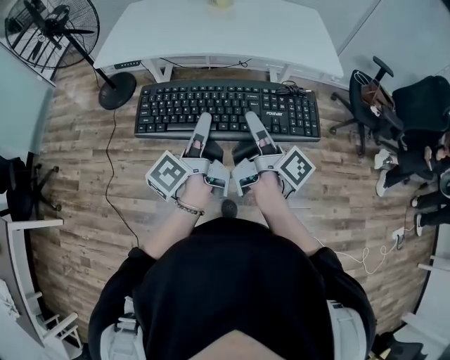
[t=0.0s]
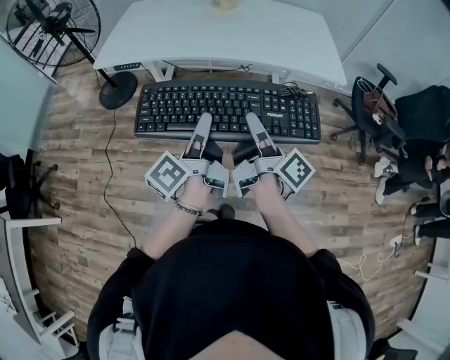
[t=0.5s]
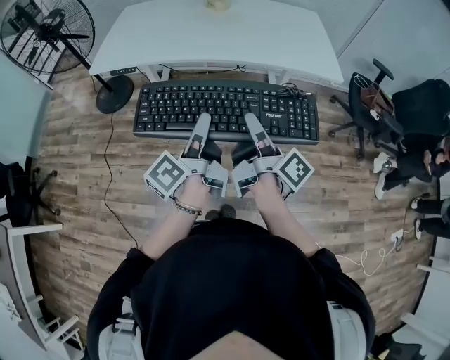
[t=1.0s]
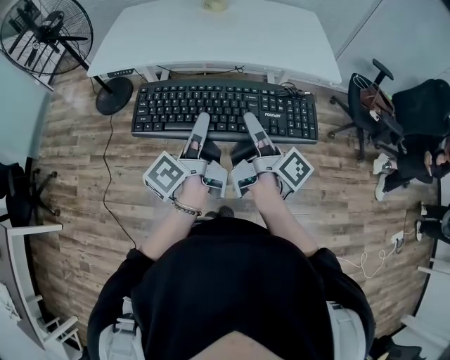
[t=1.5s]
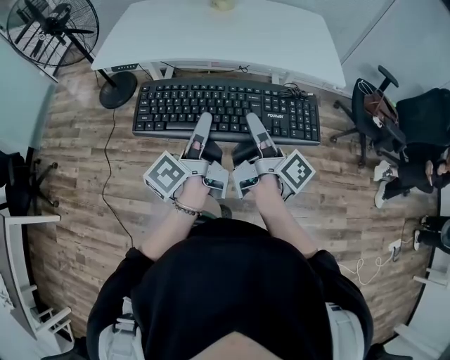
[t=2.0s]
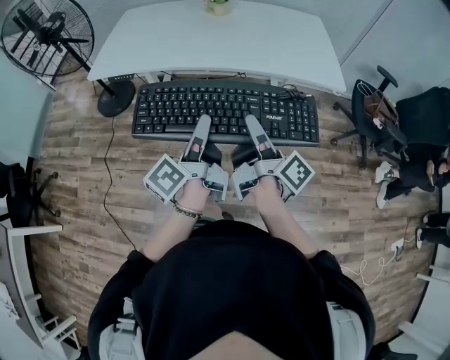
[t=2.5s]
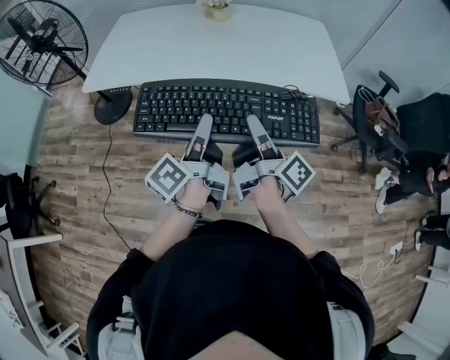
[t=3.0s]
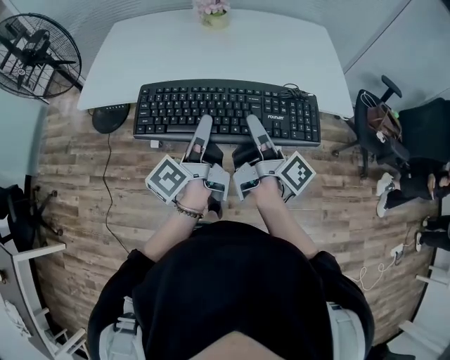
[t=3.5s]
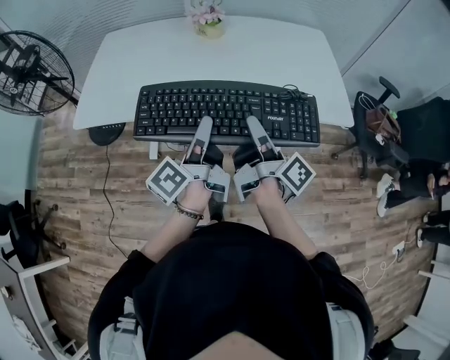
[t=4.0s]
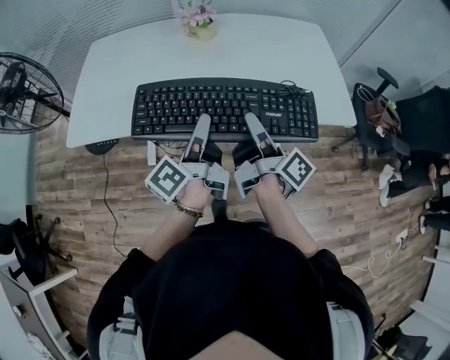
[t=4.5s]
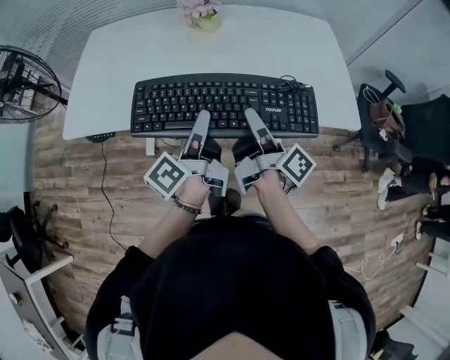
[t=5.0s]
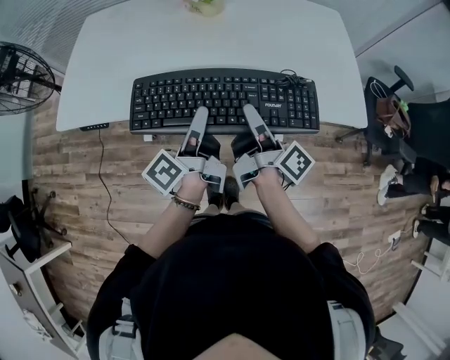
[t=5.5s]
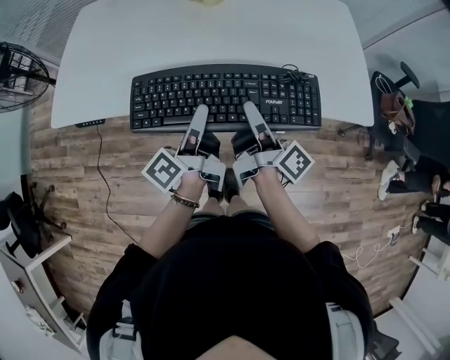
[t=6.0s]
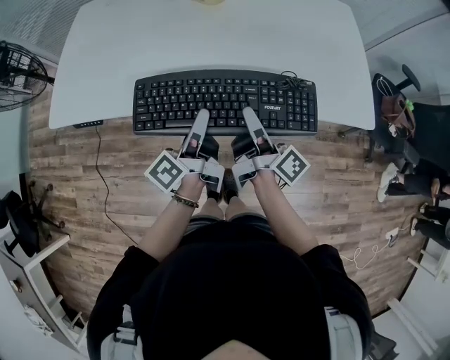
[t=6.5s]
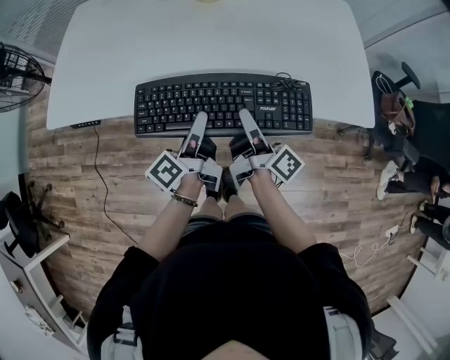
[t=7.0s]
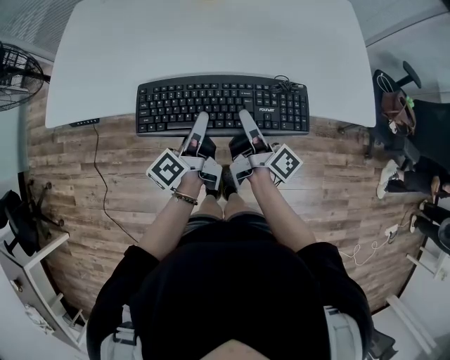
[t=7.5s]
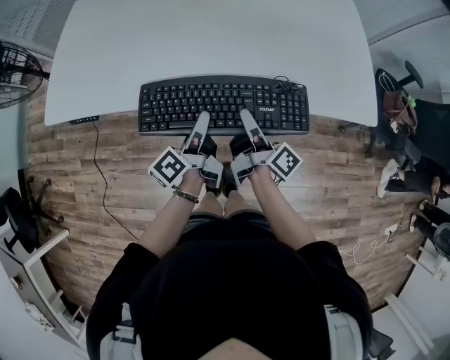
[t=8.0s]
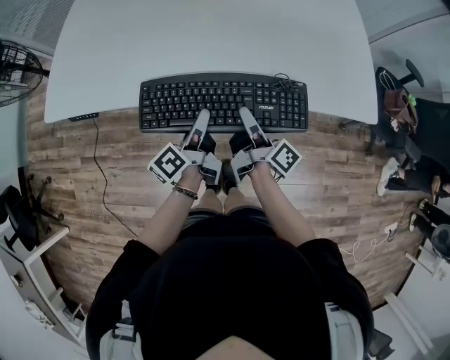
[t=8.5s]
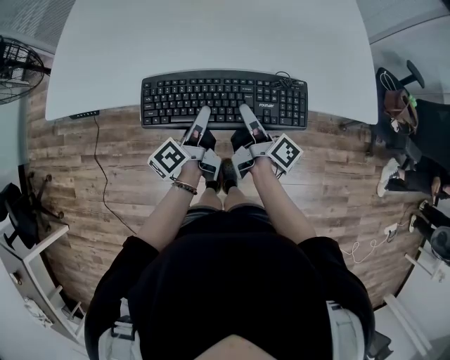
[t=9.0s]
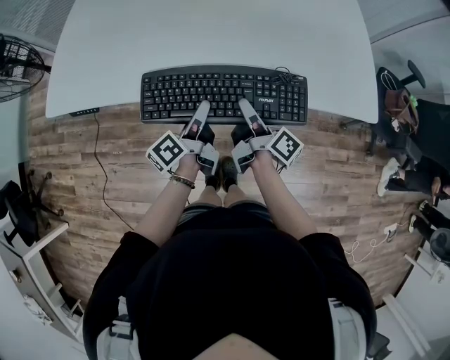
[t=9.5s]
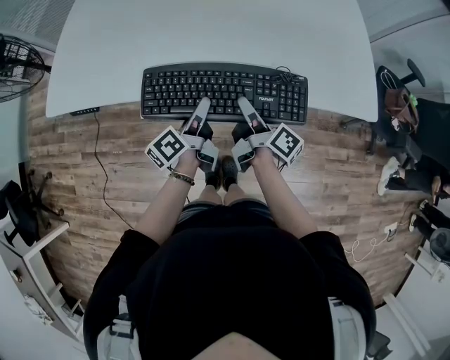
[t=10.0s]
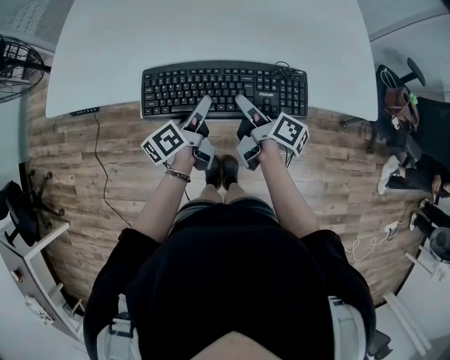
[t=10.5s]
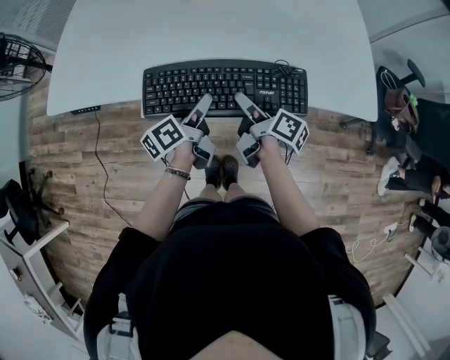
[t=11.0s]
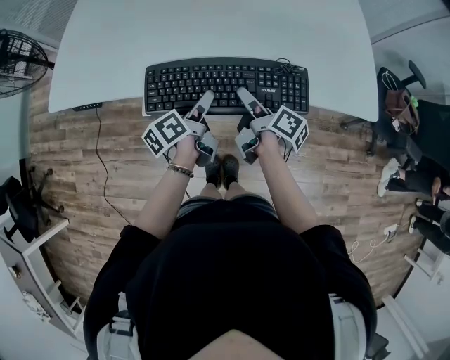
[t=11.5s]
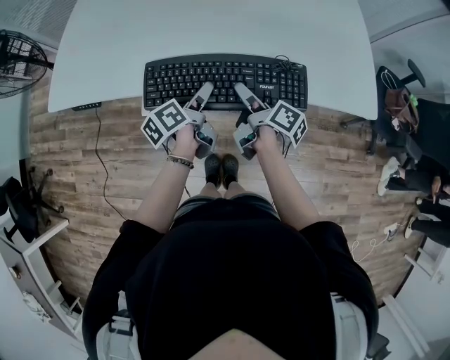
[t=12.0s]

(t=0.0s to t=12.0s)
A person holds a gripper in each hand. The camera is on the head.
t=0.0s - t=2.0s: The left gripper moves approximately 5 cm.
t=2.0s - t=4.0s: The left gripper ends up approximately 20 cm from where it was.
t=4.0s - t=6.0s: The left gripper goes about 10 cm downward.
t=6.0s - t=8.0s: The left gripper goes approximately 10 cm downward.
t=10.0s - t=12.0s: The left gripper opens.

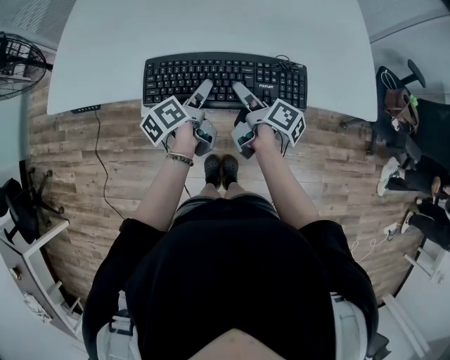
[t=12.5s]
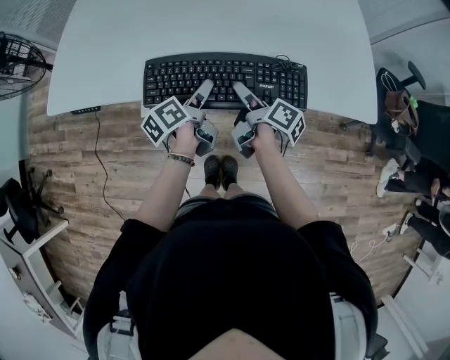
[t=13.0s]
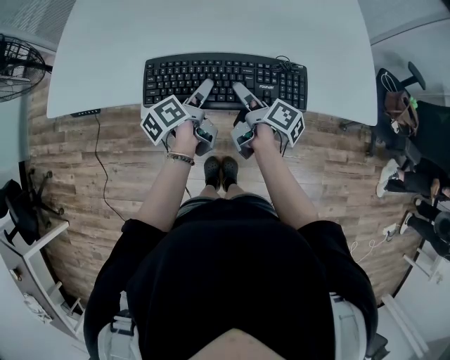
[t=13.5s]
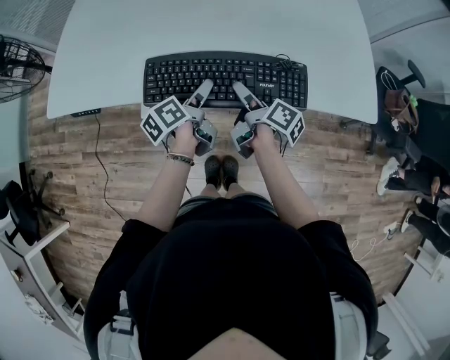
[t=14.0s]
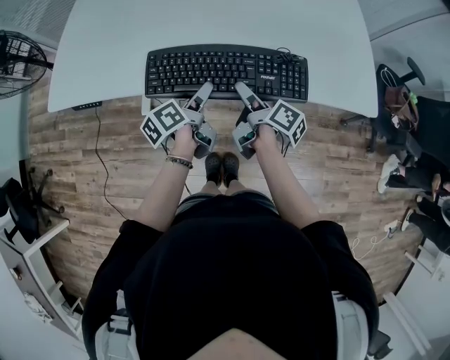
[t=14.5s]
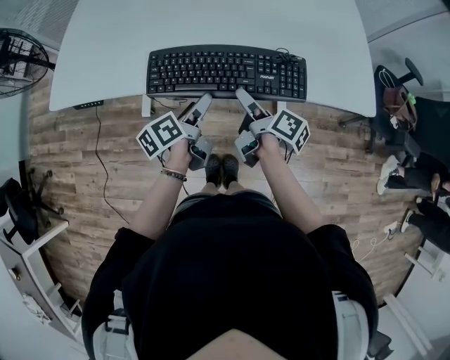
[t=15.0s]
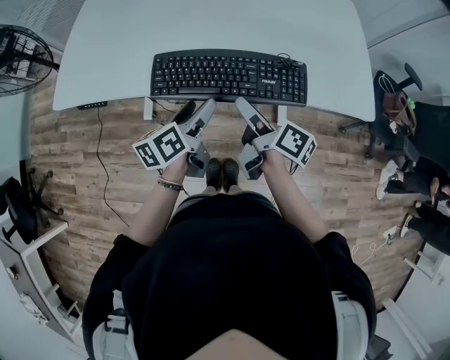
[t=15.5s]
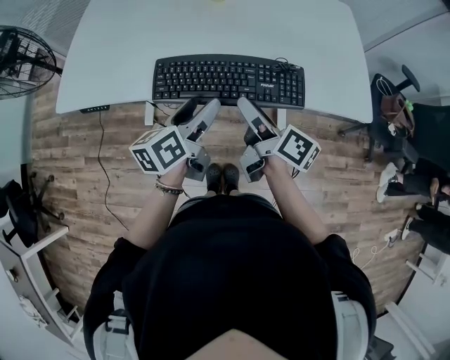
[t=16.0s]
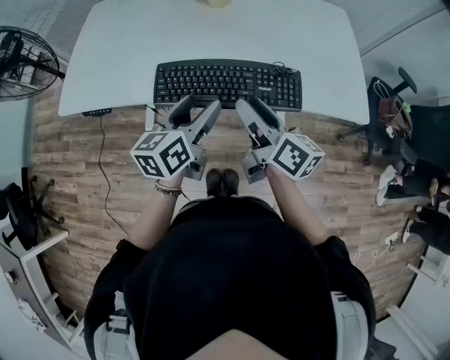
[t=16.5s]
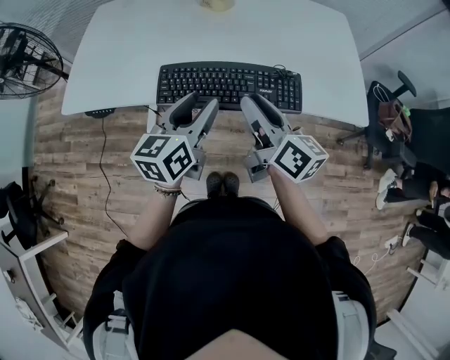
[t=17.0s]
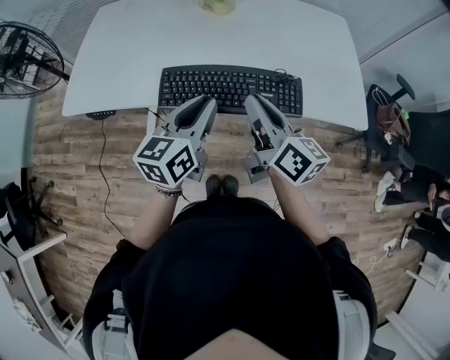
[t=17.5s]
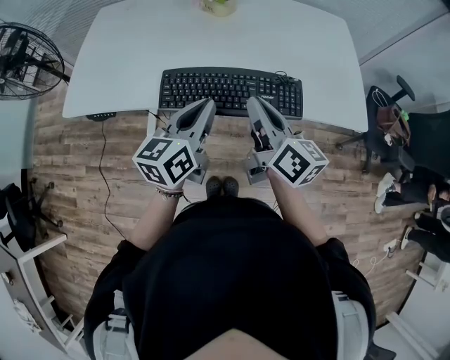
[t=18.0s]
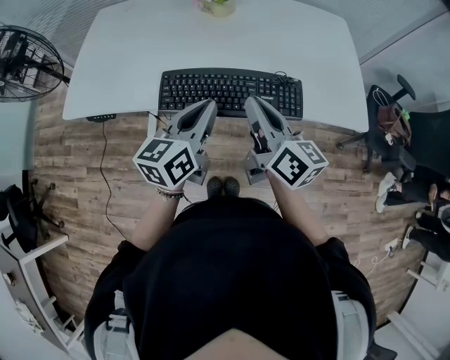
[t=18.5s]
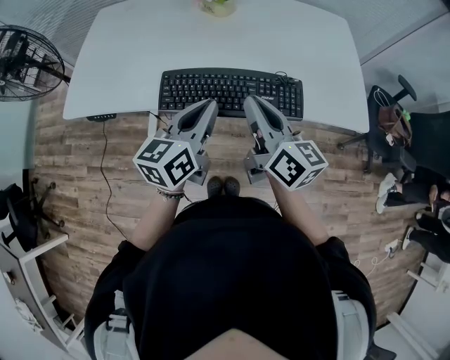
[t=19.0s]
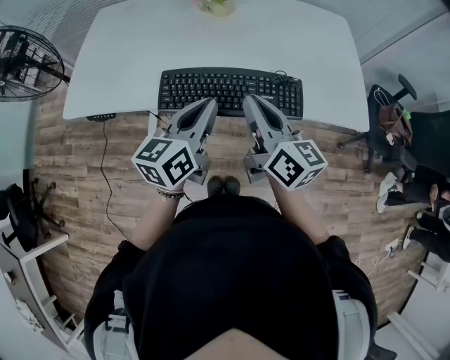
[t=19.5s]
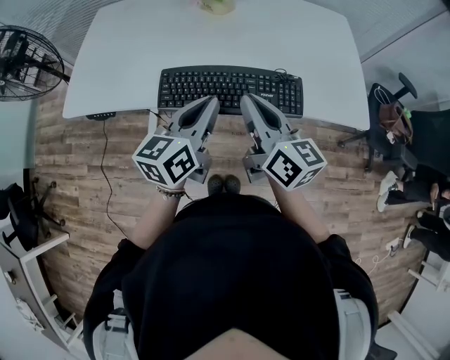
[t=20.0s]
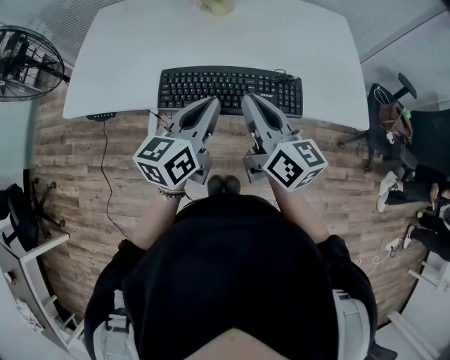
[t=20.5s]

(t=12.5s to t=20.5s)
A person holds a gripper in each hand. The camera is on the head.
t=14.5s - t=16.5s: The left gripper moves upward, roughly 15 cm, and rotates around the line of its fingers by roughly 40 degrees, clockwise from behind.
t=16.5s - t=18.5s: The left gripper closes its fingers.

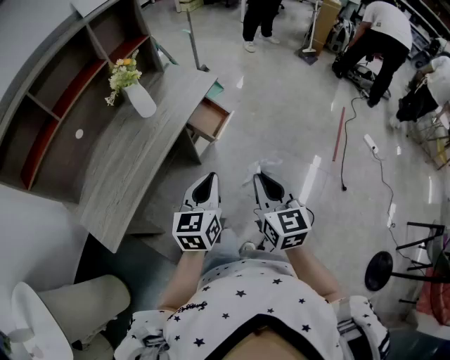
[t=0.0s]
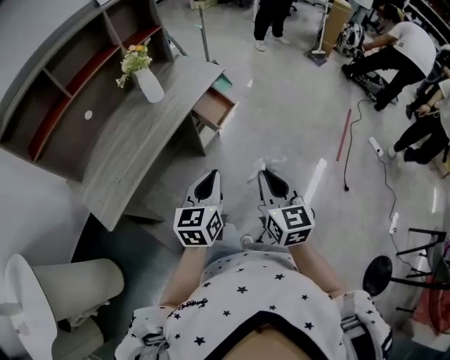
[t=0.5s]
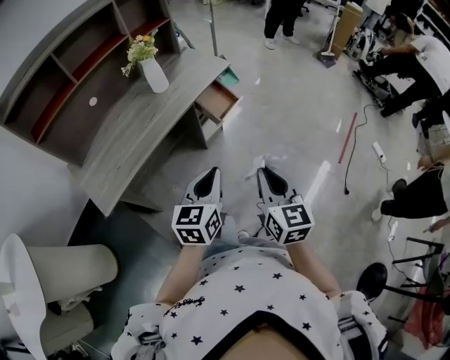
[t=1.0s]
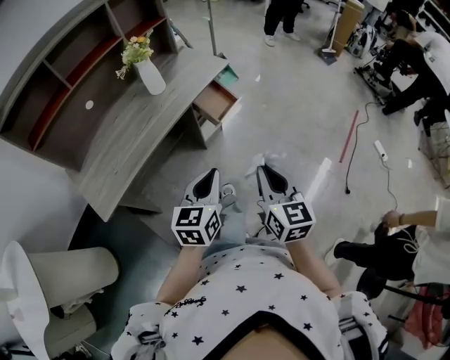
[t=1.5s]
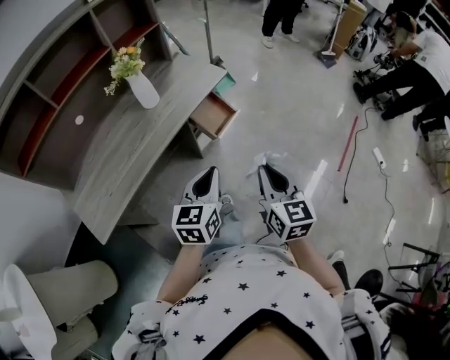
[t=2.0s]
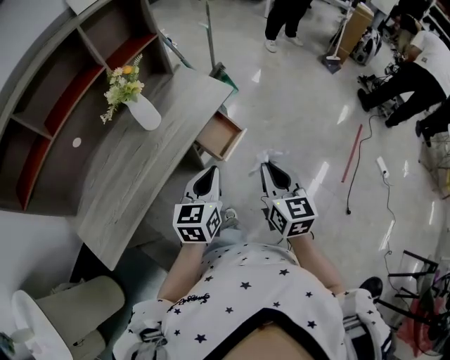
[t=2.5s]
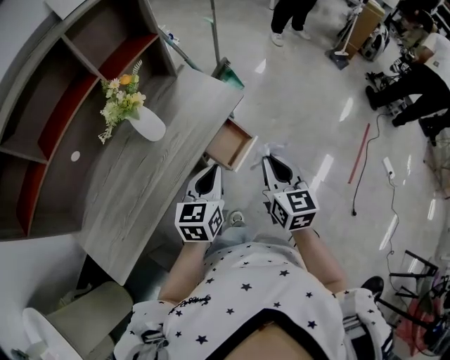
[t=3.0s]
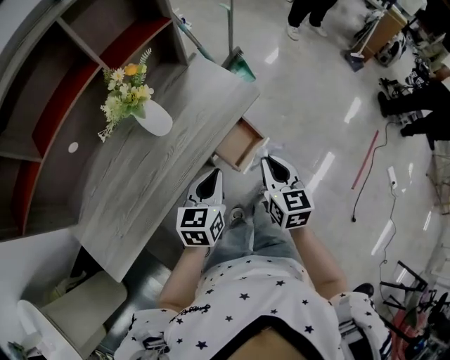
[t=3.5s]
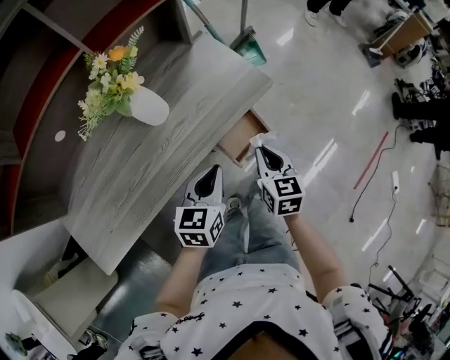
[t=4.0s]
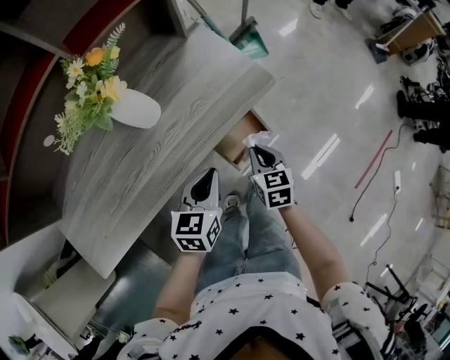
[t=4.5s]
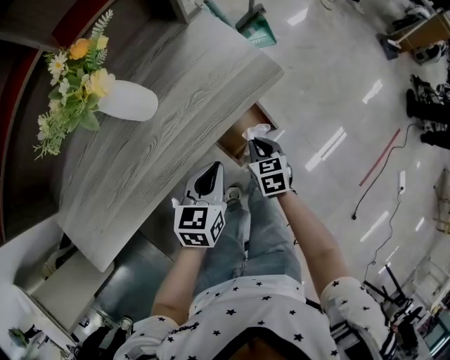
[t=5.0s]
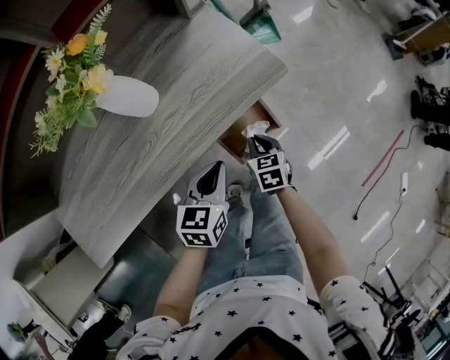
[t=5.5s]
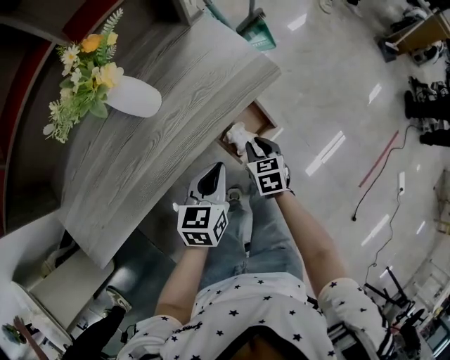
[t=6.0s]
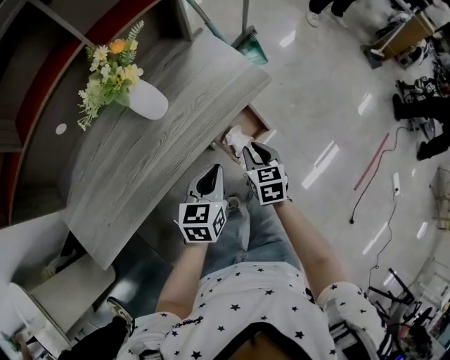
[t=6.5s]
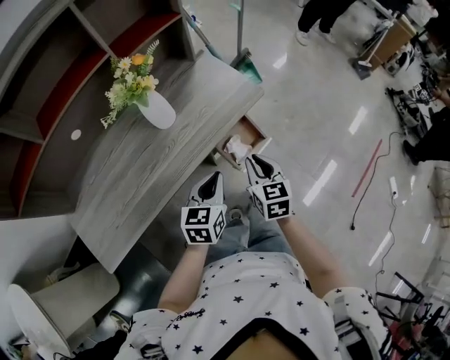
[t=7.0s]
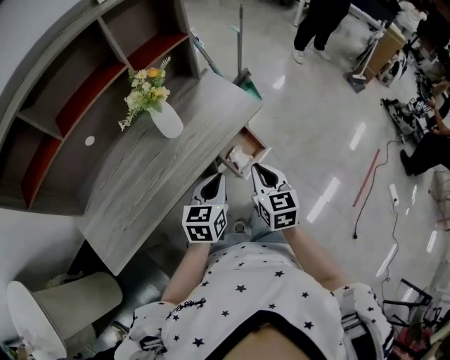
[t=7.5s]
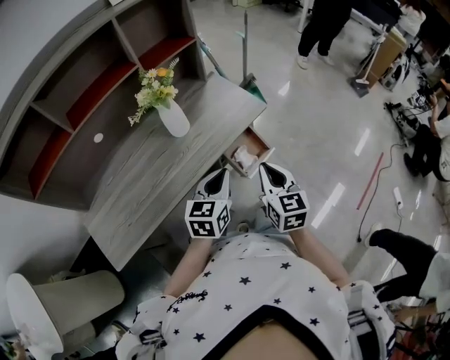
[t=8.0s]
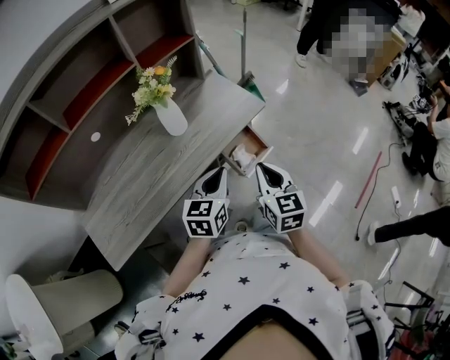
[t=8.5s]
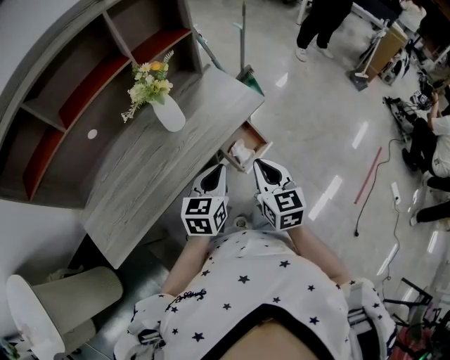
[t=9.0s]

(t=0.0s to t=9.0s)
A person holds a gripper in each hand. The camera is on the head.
t=0.0s - t=2.0s: The two grippers go approximately 5 cm forward.
t=2.0s - t=4.5s: Both grippers travel together forward and downward, approximately 40 cm. The right gripper changes its angle by some 30 degrees.
t=4.5s - t=7.0s: The left gripper heads backward and upward, covering approximately 10 cm; the right gripper travels upward and backward by about 15 cm.
t=7.0s - t=9.0s: The right gripper is displaced upward and backward by some 10 cm; the left gripper is displaced upward by about 5 cm.
